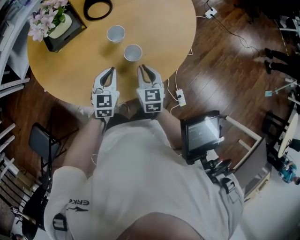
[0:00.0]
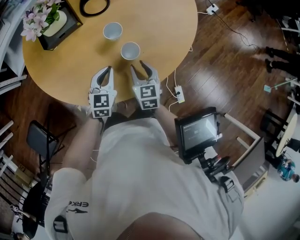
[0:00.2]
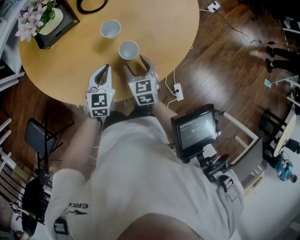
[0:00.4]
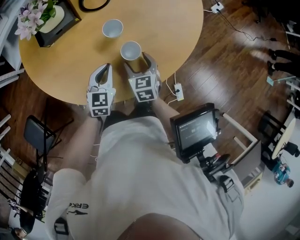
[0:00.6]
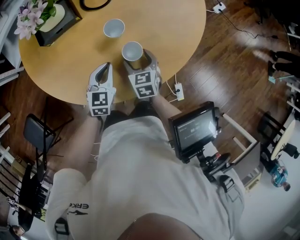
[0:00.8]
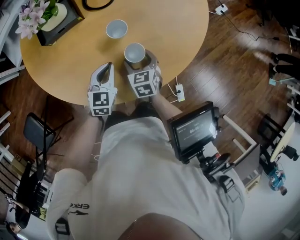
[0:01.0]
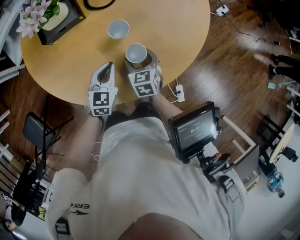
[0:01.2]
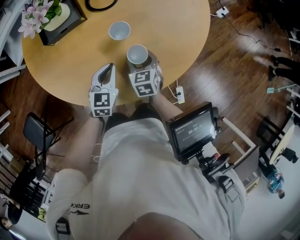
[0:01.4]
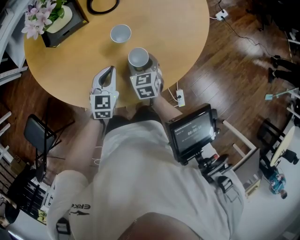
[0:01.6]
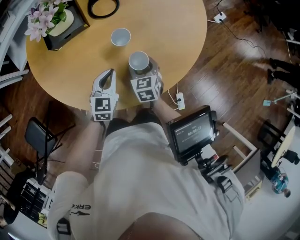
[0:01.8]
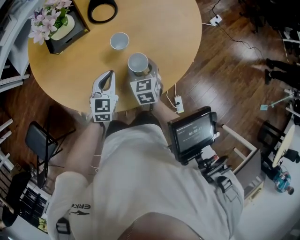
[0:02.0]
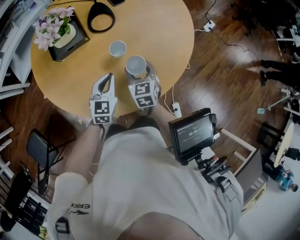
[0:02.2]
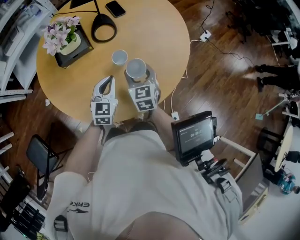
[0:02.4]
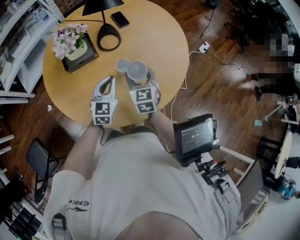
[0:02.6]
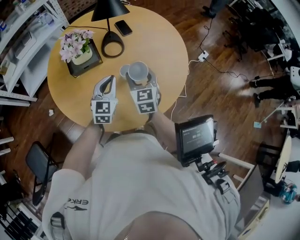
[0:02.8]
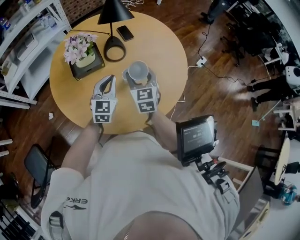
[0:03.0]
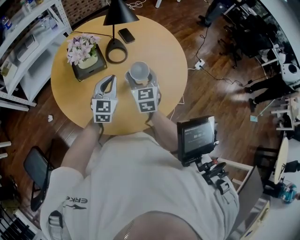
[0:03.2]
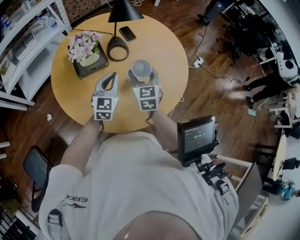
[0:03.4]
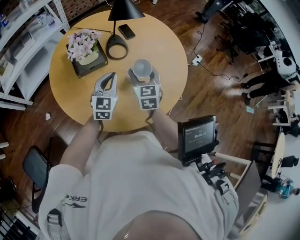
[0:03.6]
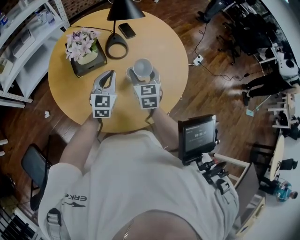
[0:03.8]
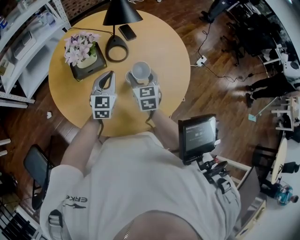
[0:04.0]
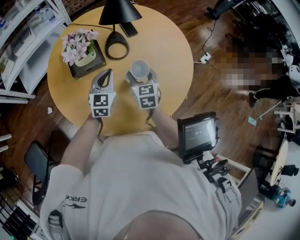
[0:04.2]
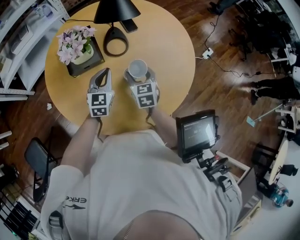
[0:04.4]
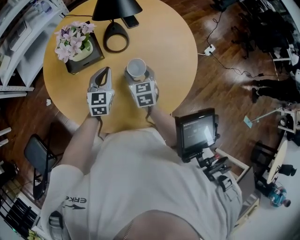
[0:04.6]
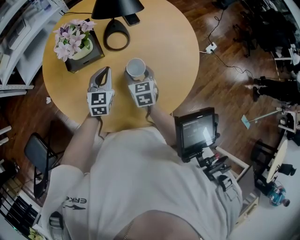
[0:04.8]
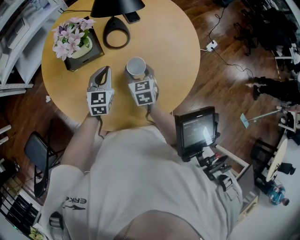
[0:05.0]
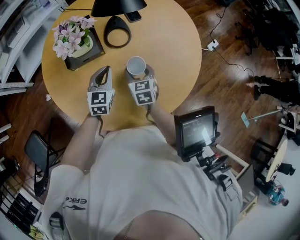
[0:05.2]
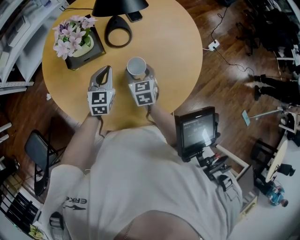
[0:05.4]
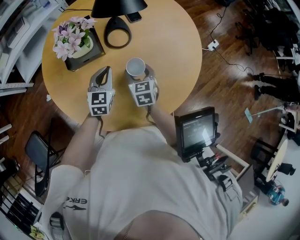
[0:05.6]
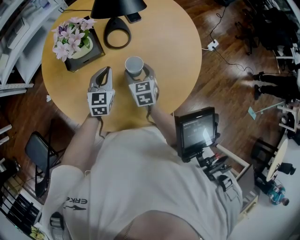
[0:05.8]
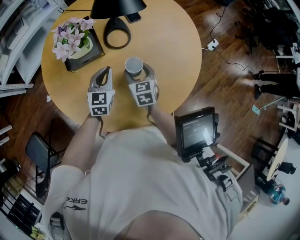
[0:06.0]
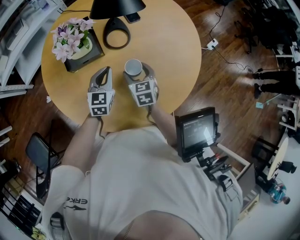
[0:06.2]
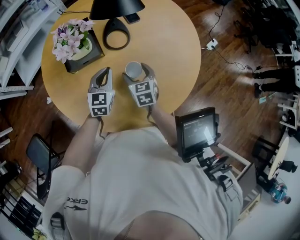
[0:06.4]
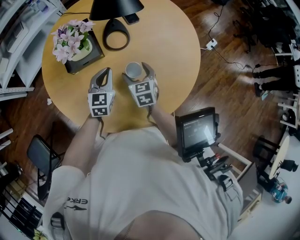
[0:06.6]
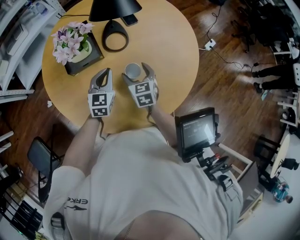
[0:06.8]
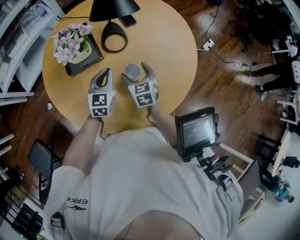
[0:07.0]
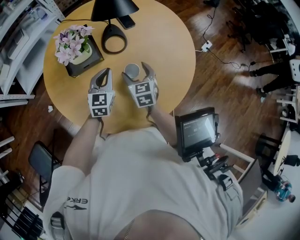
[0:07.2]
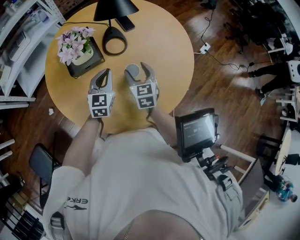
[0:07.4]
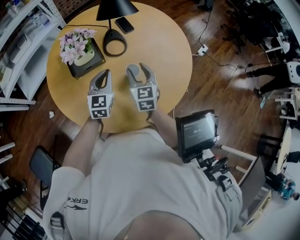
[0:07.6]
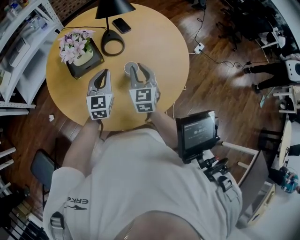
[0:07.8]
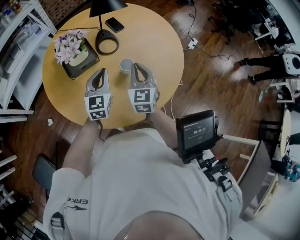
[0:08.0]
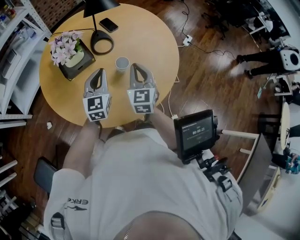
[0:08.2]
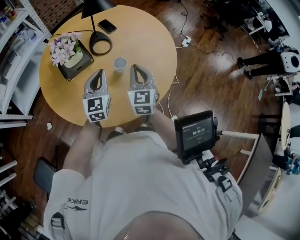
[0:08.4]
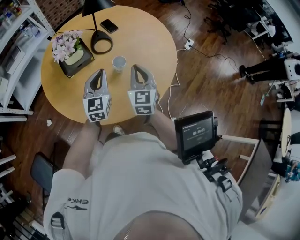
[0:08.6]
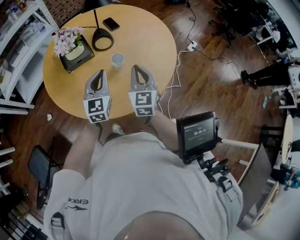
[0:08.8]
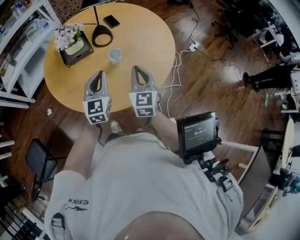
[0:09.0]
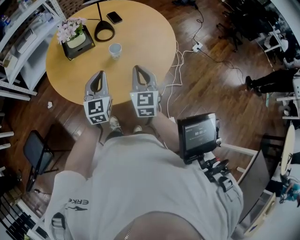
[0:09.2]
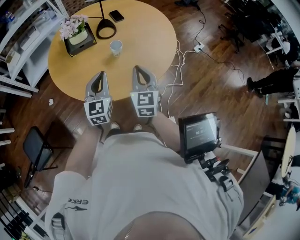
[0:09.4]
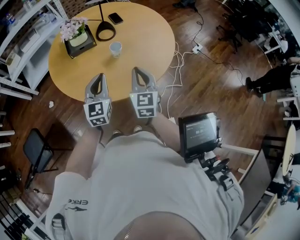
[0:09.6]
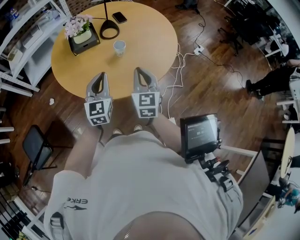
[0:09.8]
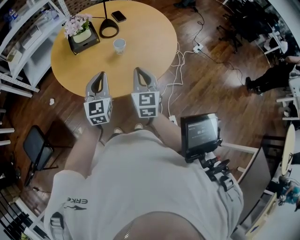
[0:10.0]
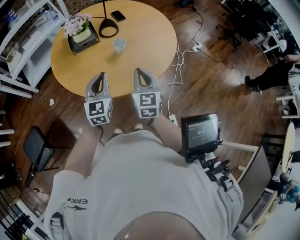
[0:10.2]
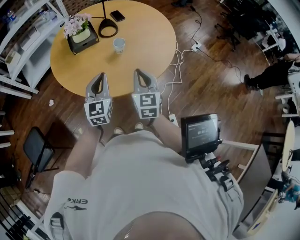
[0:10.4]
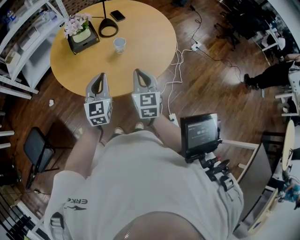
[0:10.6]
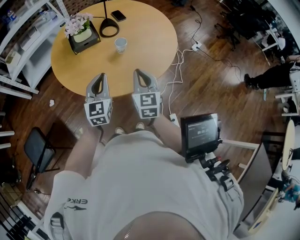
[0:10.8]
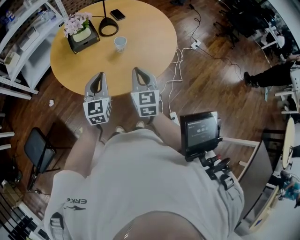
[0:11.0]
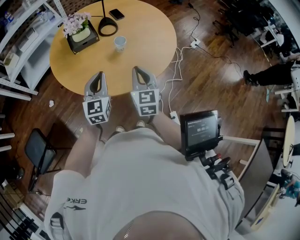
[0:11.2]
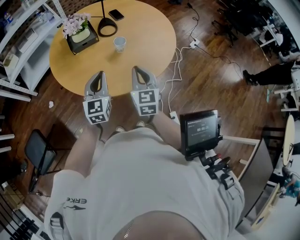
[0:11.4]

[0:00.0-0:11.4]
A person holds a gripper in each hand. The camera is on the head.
0:00.0 to 0:01.4: The right gripper is displaced downward and forward by approximately 10 cm, and opens.
0:01.4 to 0:02.8: The two grippers go roughly 20 cm upward. The right gripper rotates about 20 degrees.
0:02.8 to 0:04.2: The right gripper shifts by approximately 5 cm. The left gripper shifts roughly 5 cm forward.
0:04.2 to 0:05.6: Both grippers move downward, roughly 10 cm.
0:05.6 to 0:07.2: The grippers make only small movements.
0:07.2 to 0:08.6: The right gripper is displaced upward, backward and to the right by some 20 cm, changes its angle by about 20 degrees, and closes its fingers. The left gripper goes approximately 15 cm backward and upward.
0:08.6 to 0:10.0: Both grippers travel together backward, approximately 15 cm.
0:10.0 to 0:11.4: The grippers move only a little.

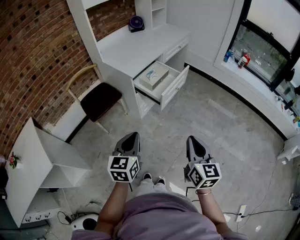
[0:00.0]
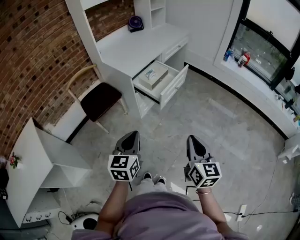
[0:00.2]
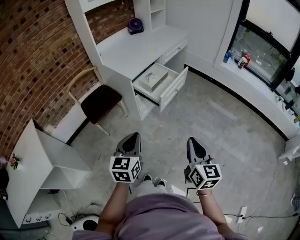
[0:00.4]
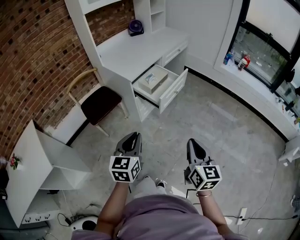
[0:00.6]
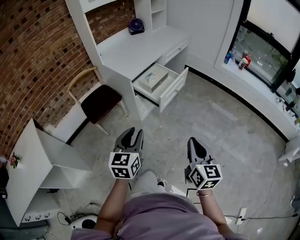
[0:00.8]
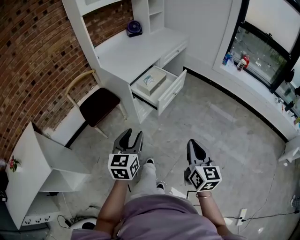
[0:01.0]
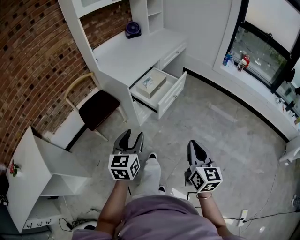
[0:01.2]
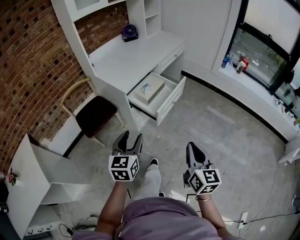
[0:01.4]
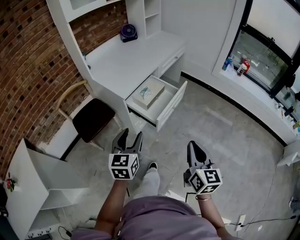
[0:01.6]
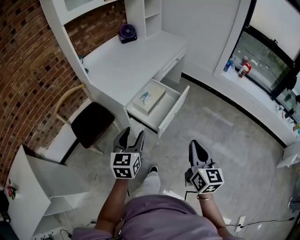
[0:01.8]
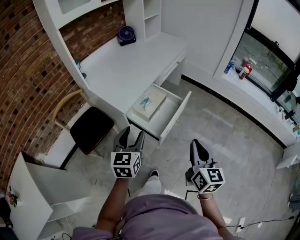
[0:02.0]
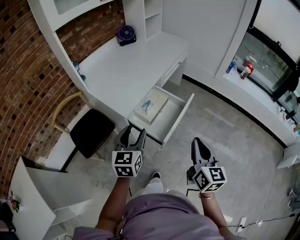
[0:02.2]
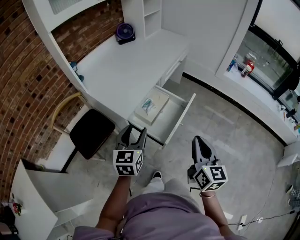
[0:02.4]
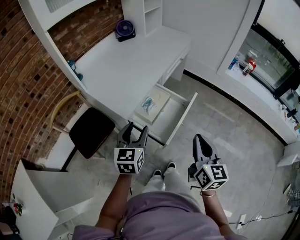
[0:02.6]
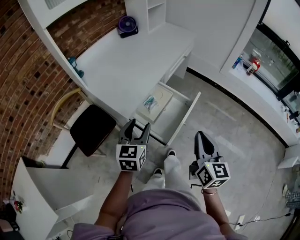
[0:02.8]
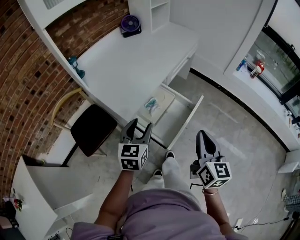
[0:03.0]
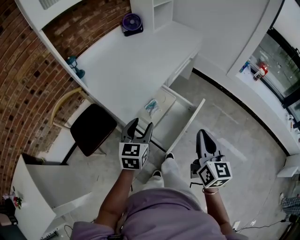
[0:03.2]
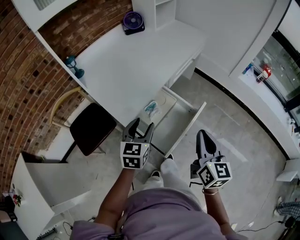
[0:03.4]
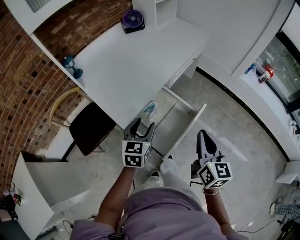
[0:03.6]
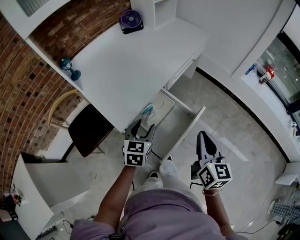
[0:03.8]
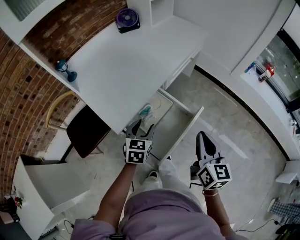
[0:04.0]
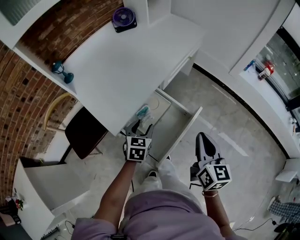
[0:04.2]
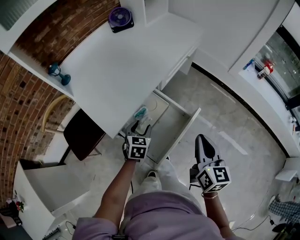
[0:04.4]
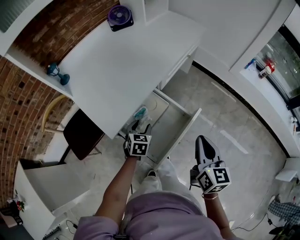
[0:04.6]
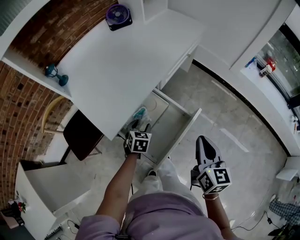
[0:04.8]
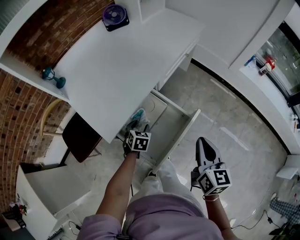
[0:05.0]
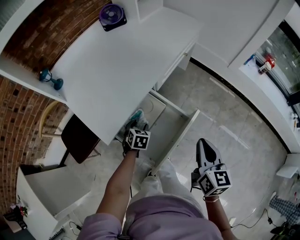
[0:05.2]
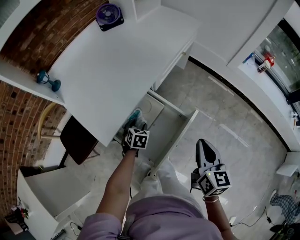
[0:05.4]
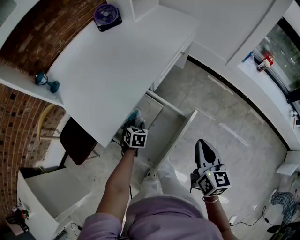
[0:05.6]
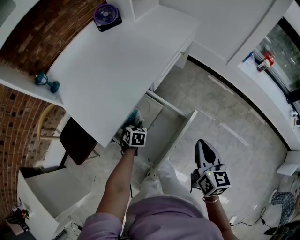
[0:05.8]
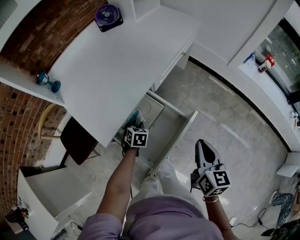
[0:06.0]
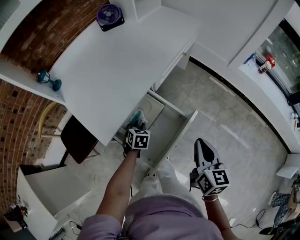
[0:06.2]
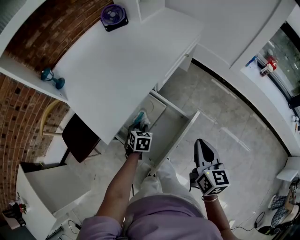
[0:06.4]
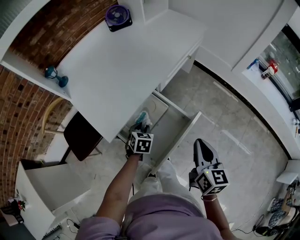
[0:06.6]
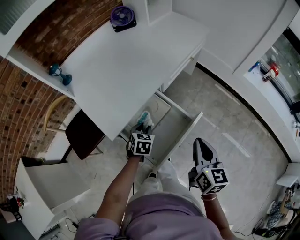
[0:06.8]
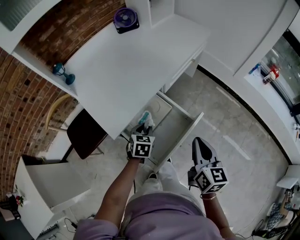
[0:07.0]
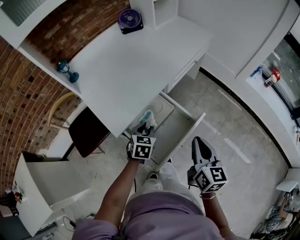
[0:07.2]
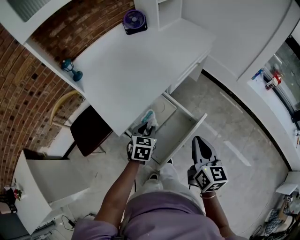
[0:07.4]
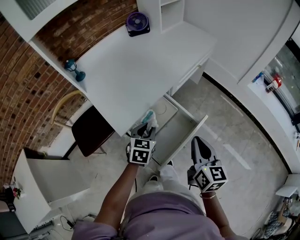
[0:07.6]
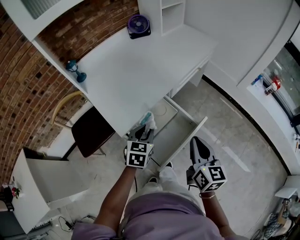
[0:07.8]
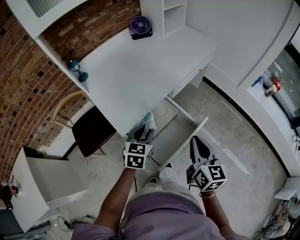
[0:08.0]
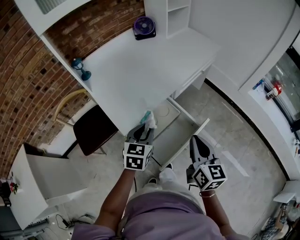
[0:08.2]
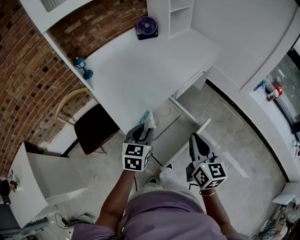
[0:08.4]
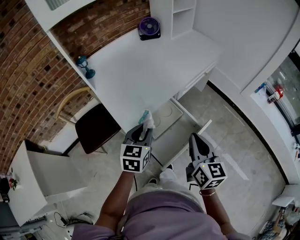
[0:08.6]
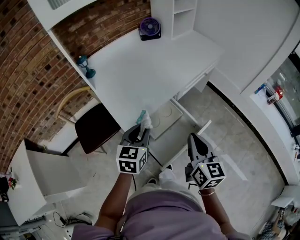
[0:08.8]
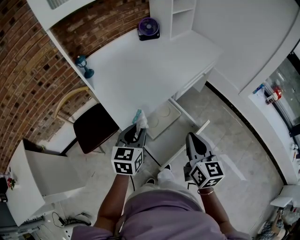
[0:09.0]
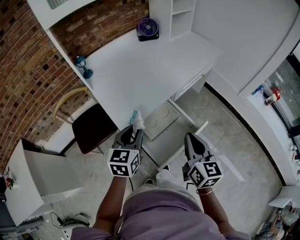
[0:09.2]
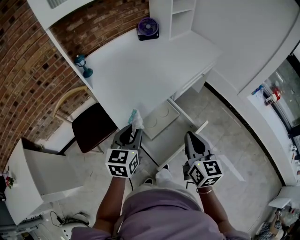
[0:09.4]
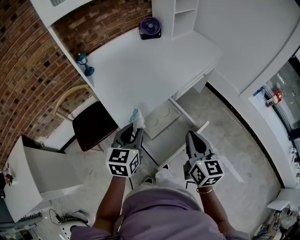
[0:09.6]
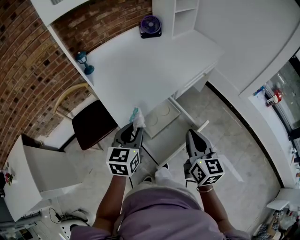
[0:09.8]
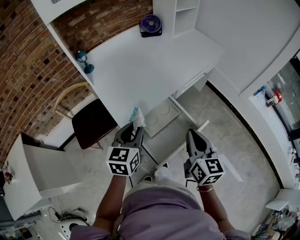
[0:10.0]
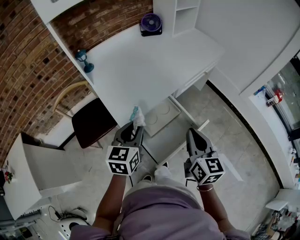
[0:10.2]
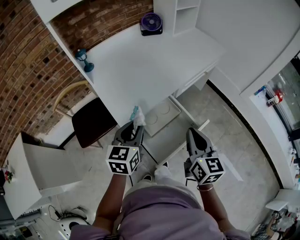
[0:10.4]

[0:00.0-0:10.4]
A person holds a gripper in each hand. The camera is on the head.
0:00.0 to 0:01.4: The grippers both shift forward by some 10 cm. The left gripper opens up.
0:01.4 to 0:03.0: The grippers both shift forward by some 30 cm.
0:03.0 to 0:04.4: The left gripper shifts approximately 20 cm downward and forward, and changes its angle by about 20 degrees. Meanwhile the right gripper goes some 15 cm forward and to the right.
0:04.4 to 0:06.0: The left gripper heads downward and forward, covering approximately 10 cm, and closes its fingers; the right gripper changes place by roughly 5 cm.
0:06.0 to 0:07.4: The right gripper travels to the left by about 5 cm, while the left gripper shifts roughly 15 cm upward and backward.
0:07.4 to 0:09.0: The left gripper travels upward and to the left by approximately 15 cm, and rotates about 20 degrees. Meanwhile the right gripper moves to the left, some 5 cm.
0:09.0 to 0:10.4: The grippers move only a little.

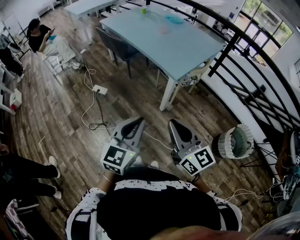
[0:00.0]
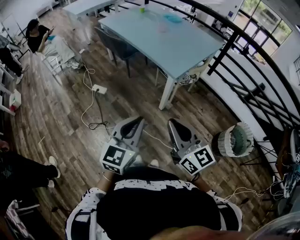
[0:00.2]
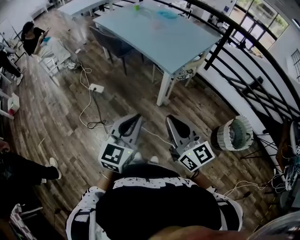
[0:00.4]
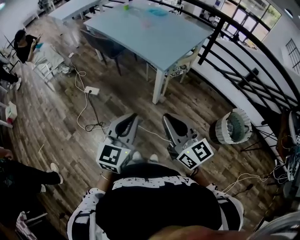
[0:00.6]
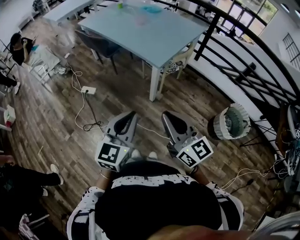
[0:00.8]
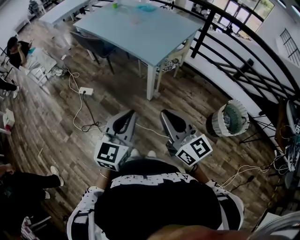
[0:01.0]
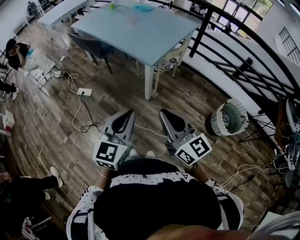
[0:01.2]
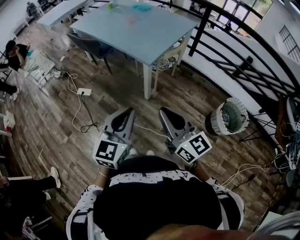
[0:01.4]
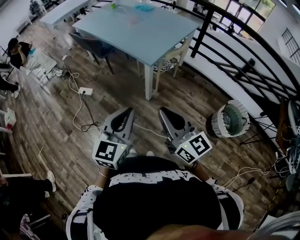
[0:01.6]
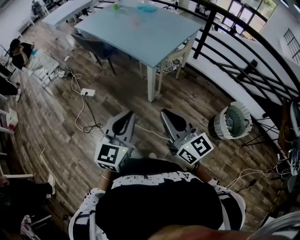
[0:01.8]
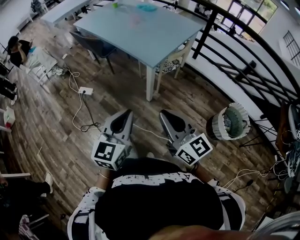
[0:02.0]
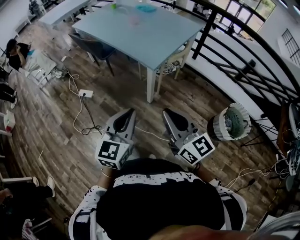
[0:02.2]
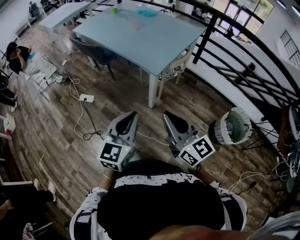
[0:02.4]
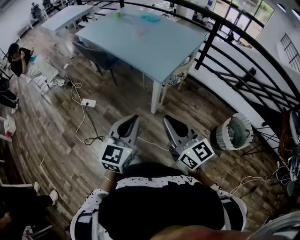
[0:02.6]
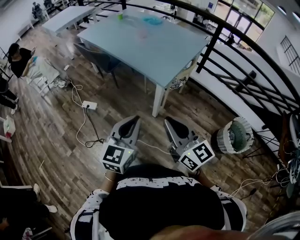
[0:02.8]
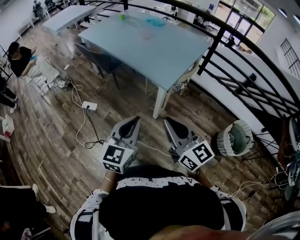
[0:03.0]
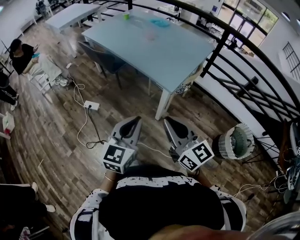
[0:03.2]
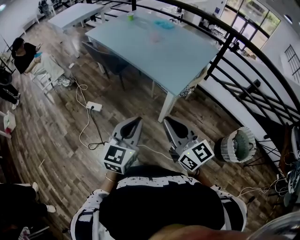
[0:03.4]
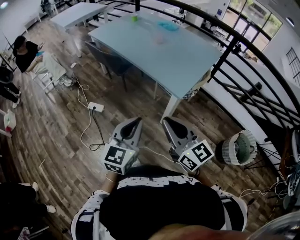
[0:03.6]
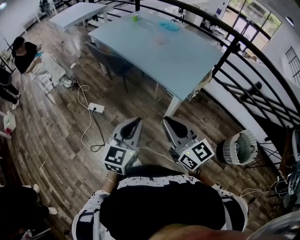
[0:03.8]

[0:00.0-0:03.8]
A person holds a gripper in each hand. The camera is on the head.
0:00.0 to 0:01.2: Both grippers move to the right, some 5 cm.
0:01.2 to 0:02.6: Both grippers travel together forward, approximately 10 cm.
0:02.6 to 0:03.8: Both grippers travel together to the left and forward, roughly 15 cm.
